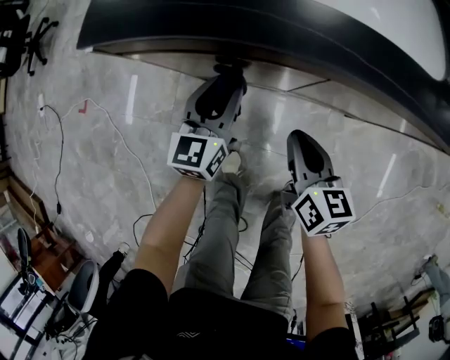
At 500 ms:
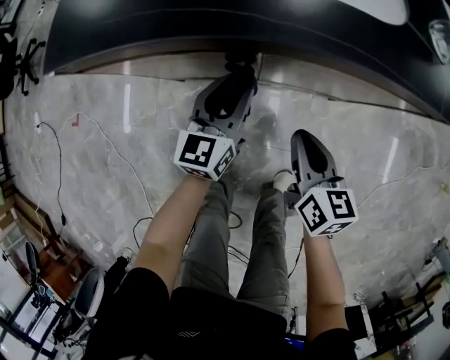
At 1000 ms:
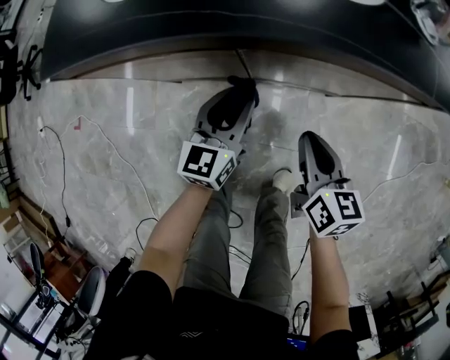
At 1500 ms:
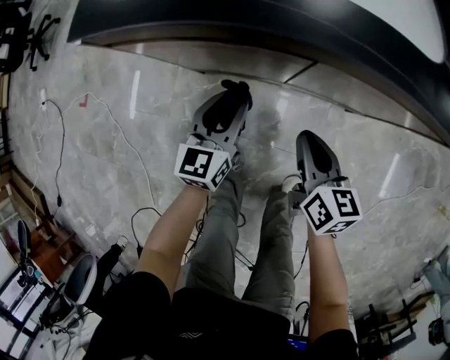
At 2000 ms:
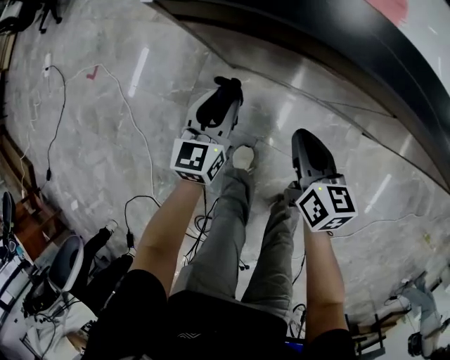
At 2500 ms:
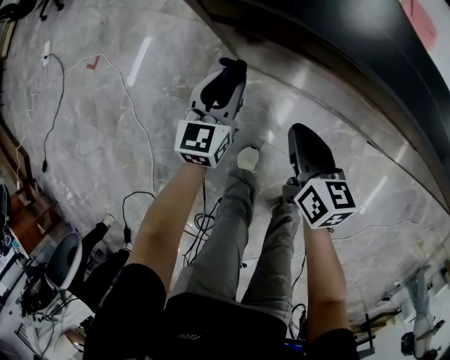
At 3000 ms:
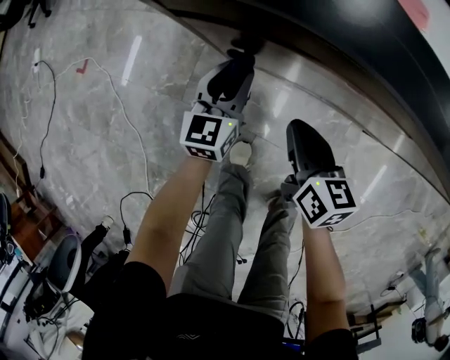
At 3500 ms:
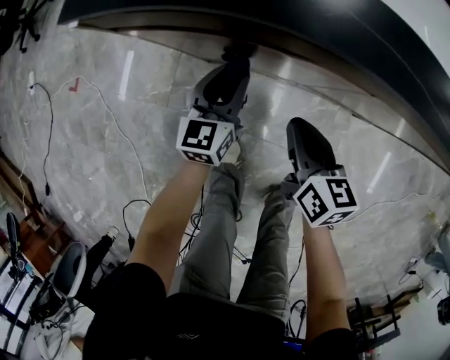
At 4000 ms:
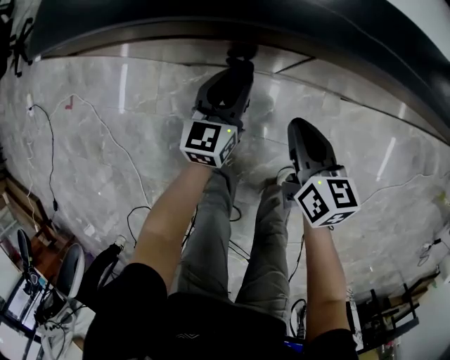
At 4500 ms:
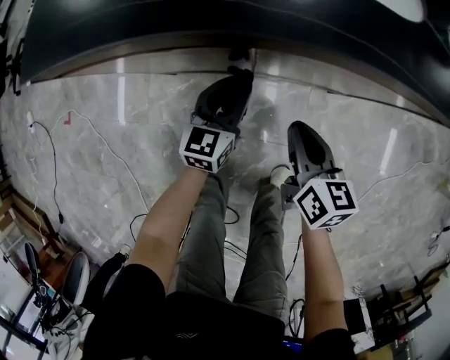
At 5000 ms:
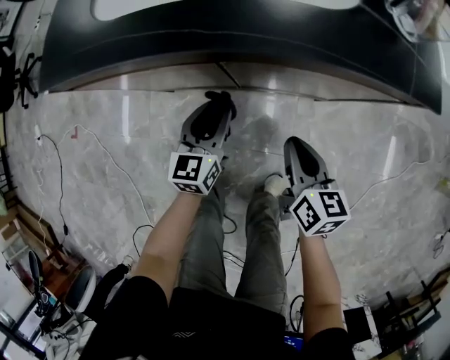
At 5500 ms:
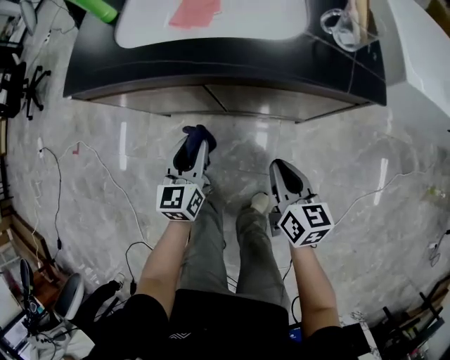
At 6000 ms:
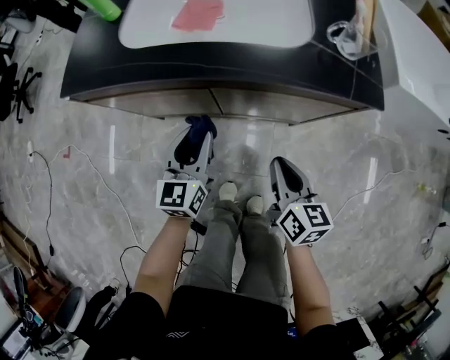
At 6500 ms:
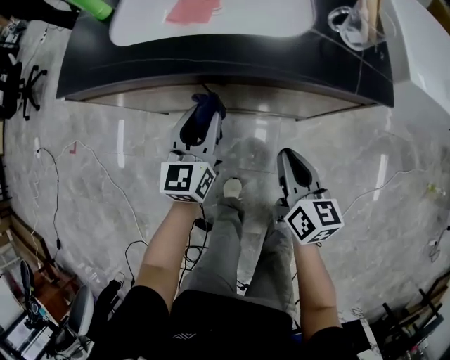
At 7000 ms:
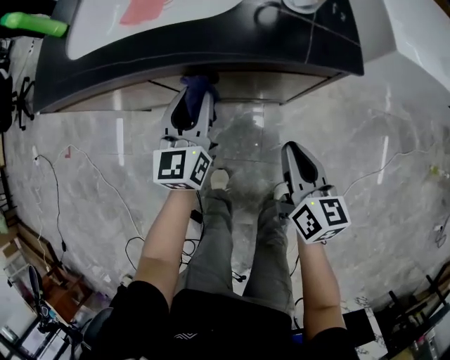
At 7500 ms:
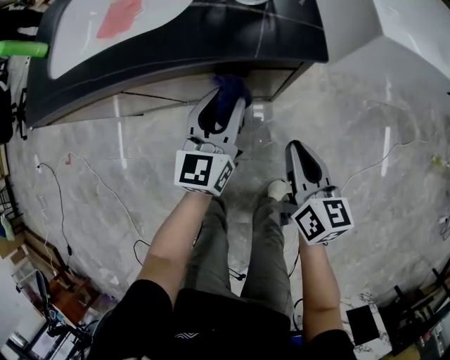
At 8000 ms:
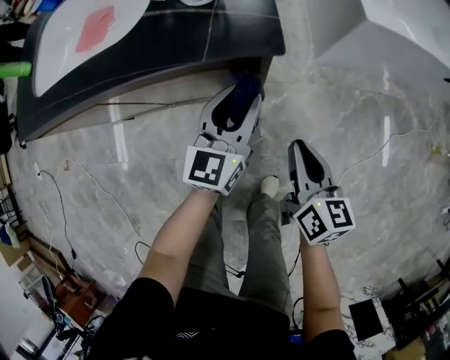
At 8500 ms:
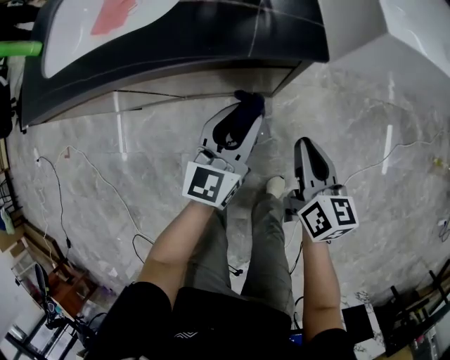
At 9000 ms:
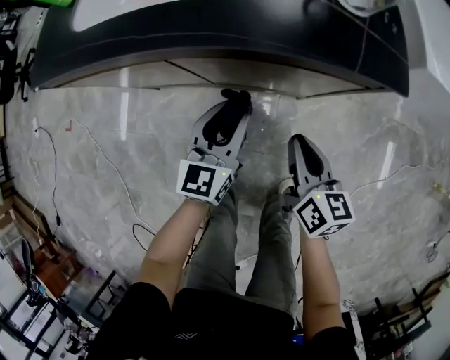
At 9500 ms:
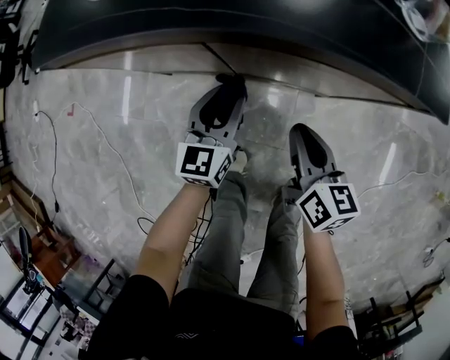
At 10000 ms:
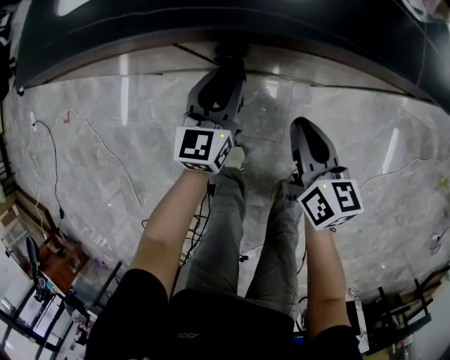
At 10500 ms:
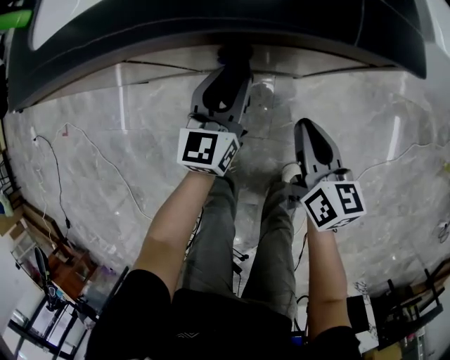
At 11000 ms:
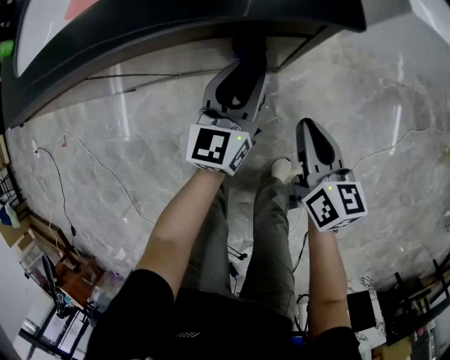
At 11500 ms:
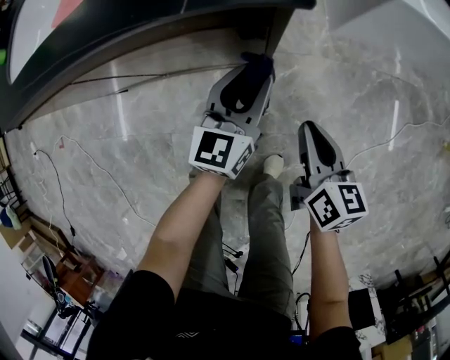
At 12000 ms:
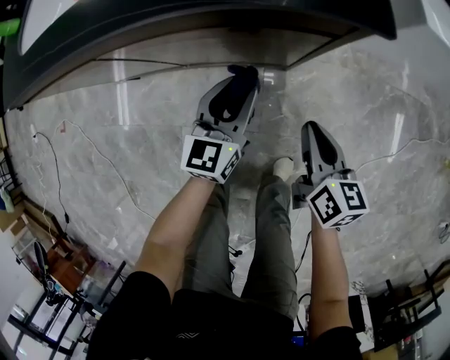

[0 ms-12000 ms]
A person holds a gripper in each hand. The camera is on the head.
0 ms to 2000 ms: The left gripper goes approximately 15 cm to the left and downward. Meanwhile the right gripper is displaced to the left by some 10 cm.
2000 ms to 4000 ms: Both grippers travel together to the right, roughly 15 cm.
4000 ms to 6000 ms: The left gripper travels upward, backward and to the right by some 20 cm; the right gripper is displaced to the right, upward and backward by roughly 20 cm.
6000 ms to 8000 ms: The grippers both shift to the right by roughly 30 cm.
8000 ms to 10000 ms: Both grippers travel together to the left, roughly 25 cm.
10000 ms to 12000 ms: The two grippers go roughly 15 cm to the right.

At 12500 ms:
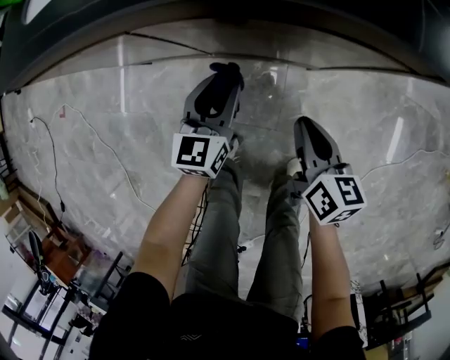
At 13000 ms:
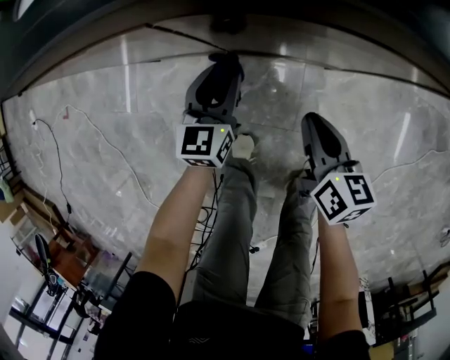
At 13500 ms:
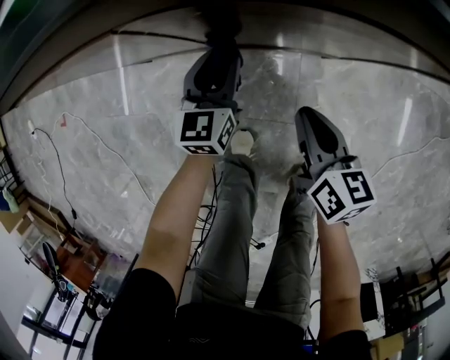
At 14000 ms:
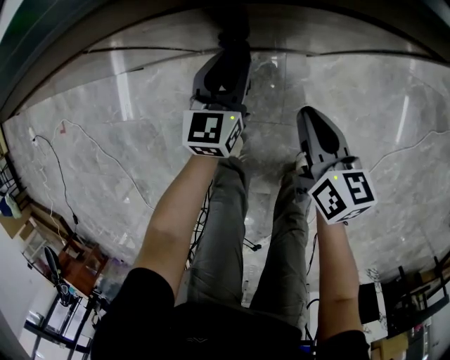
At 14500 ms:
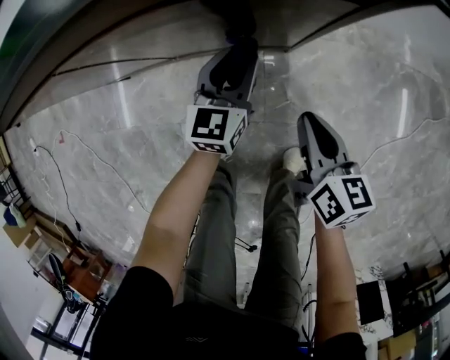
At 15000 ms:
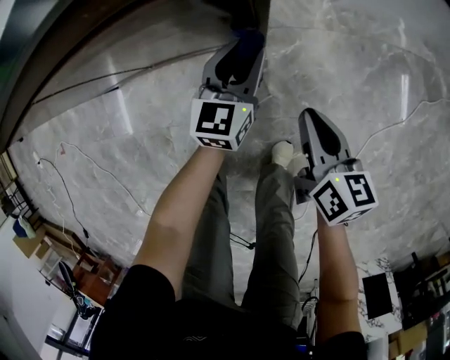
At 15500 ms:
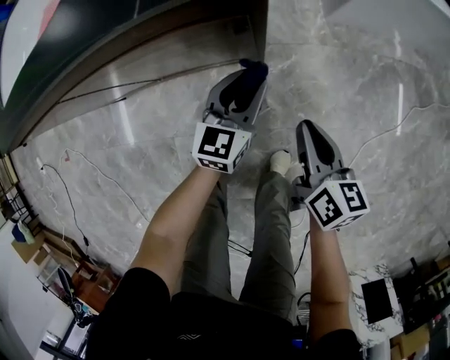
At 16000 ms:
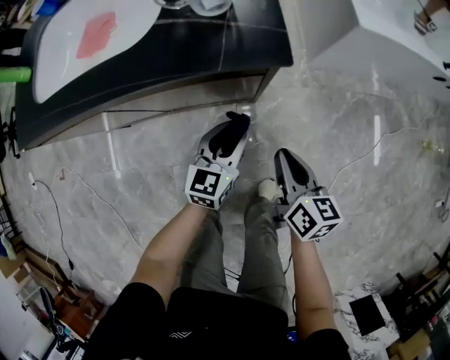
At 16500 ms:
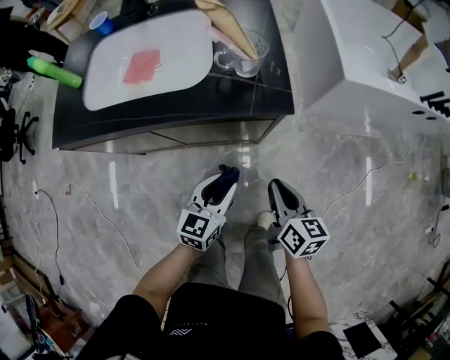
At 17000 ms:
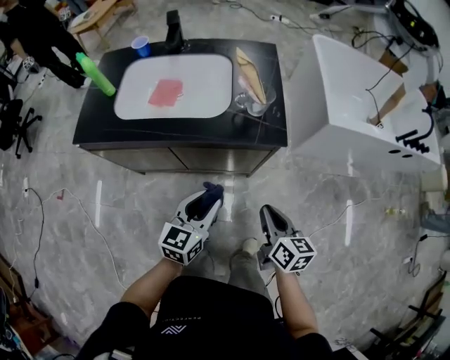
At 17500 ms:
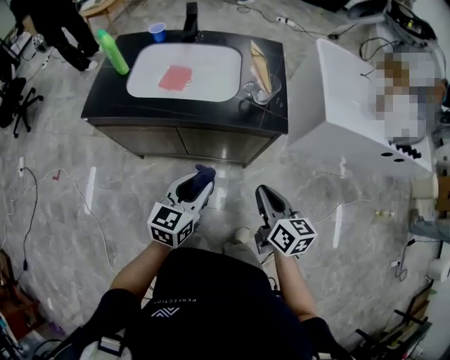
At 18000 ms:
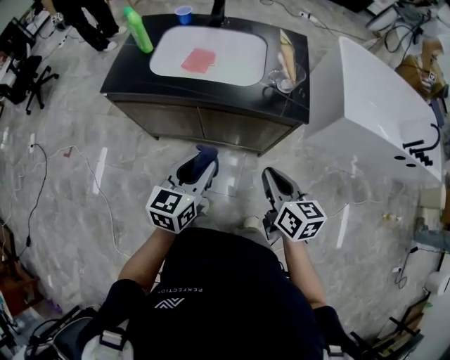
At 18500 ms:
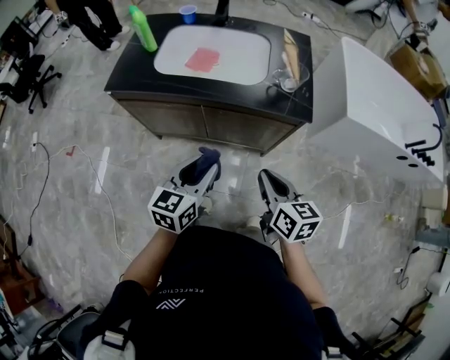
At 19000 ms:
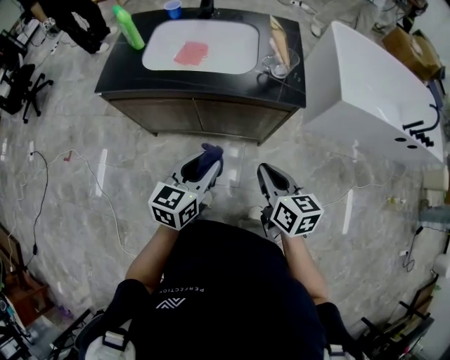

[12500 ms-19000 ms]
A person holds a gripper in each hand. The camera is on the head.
12500 ms to 14500 ms: The left gripper is displaced to the right by about 15 cm; the right gripper moves to the right, some 10 cm.
14500 ms to 17000 ms: The left gripper moves upward and backward, about 35 cm. Meanwhile the right gripper moves upward, roughly 30 cm.
17000 ms to 19000 ms: The left gripper goes approximately 10 cm to the left, backward and upward. Meanwhile the right gripper goes some 10 cm to the left and upward.

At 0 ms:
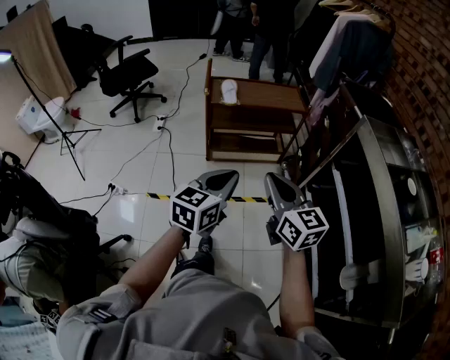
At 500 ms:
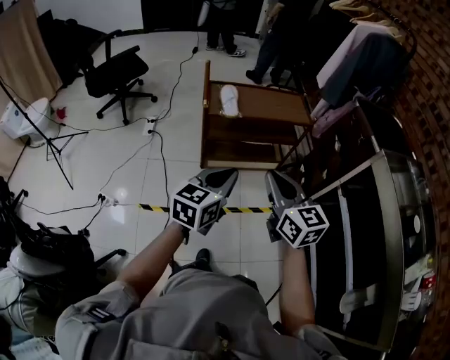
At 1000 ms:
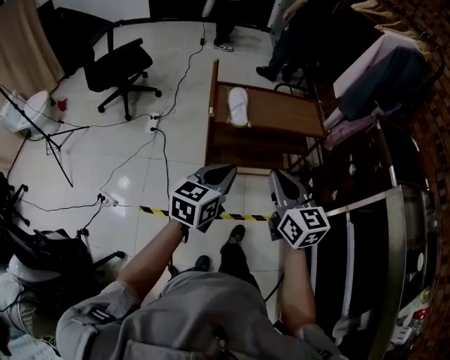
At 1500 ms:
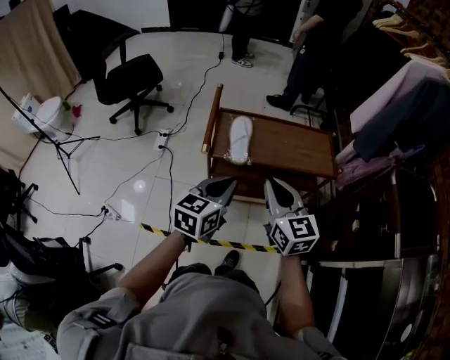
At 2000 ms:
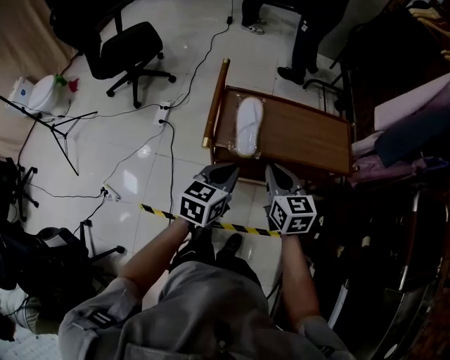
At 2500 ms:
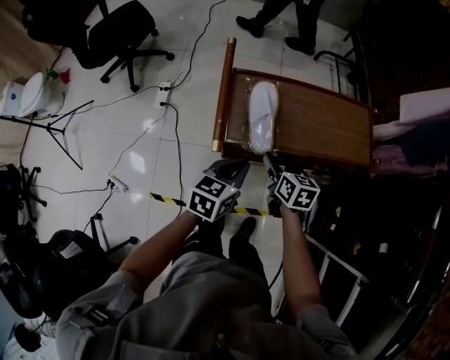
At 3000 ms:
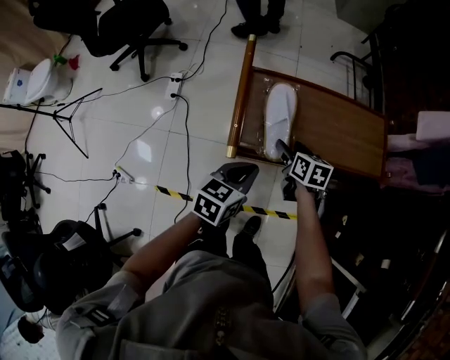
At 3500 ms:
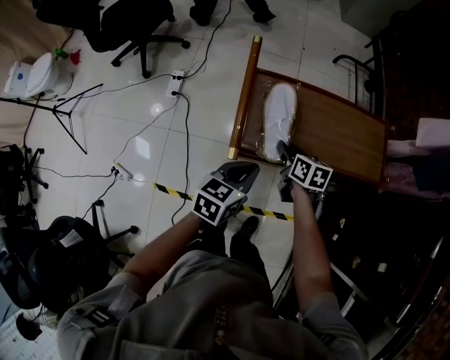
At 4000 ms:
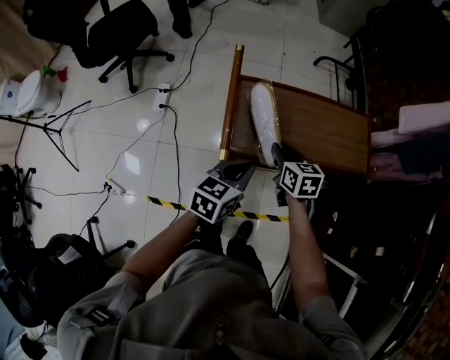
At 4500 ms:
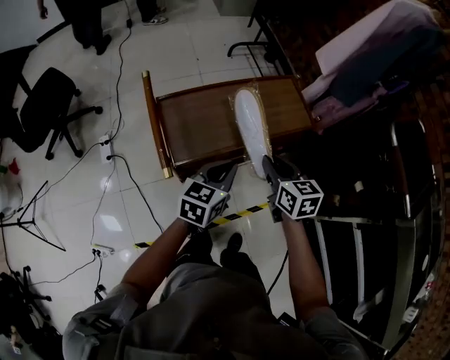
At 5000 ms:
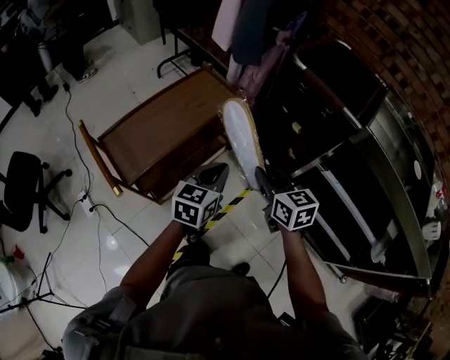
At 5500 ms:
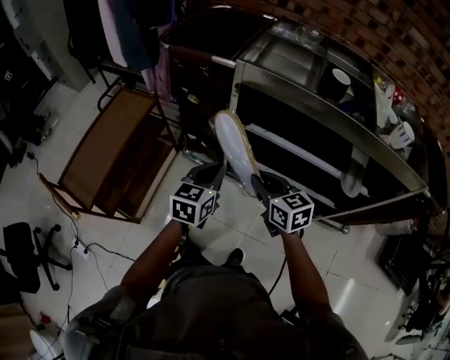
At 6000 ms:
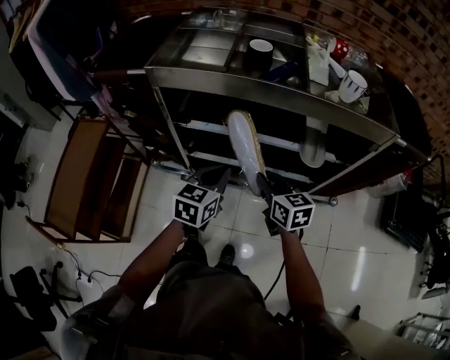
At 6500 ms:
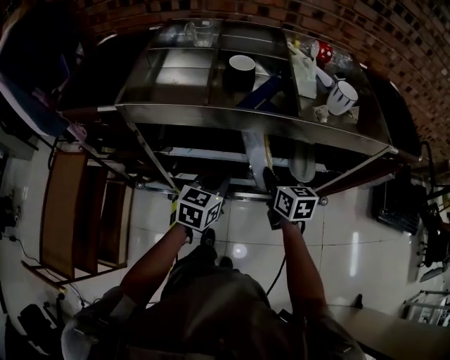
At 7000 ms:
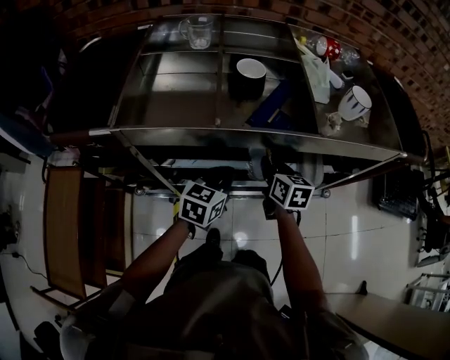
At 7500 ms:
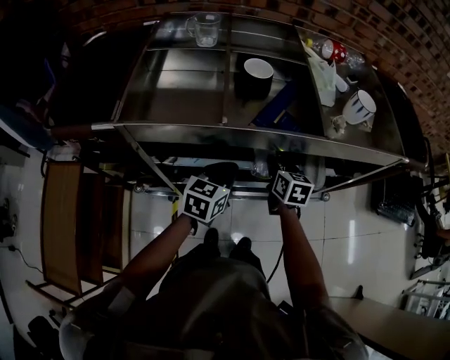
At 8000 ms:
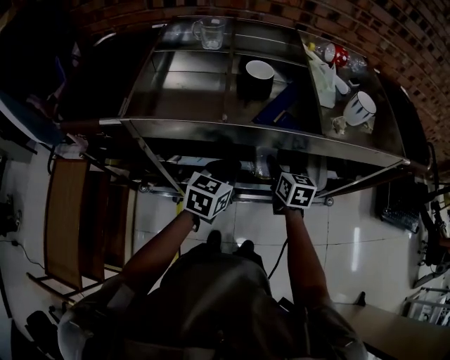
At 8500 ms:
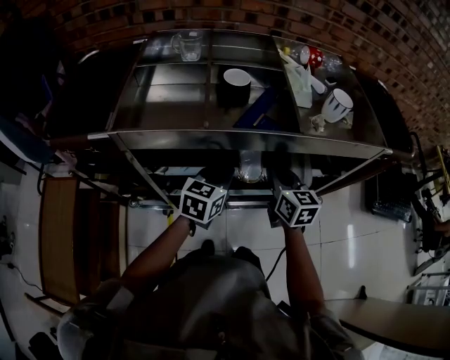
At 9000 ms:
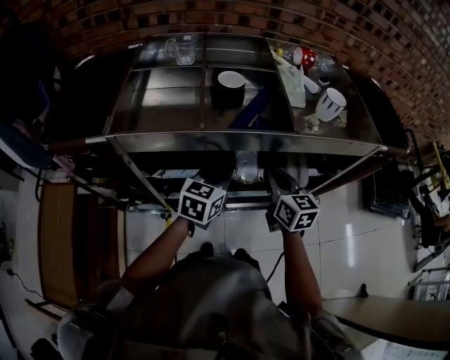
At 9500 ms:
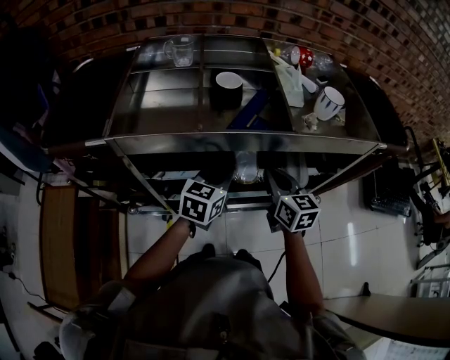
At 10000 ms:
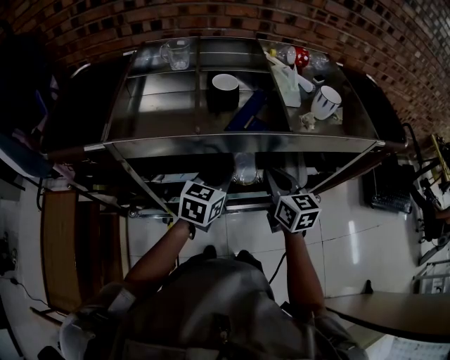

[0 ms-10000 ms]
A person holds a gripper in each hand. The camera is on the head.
0 ms to 2000 ms: Both grippers are carried forward, approximately 50 cm.
2000 ms to 4000 ms: The left gripper shifts about 10 cm forward and downward, while the right gripper shifts some 15 cm forward, downward and to the left, and opens, then closes once more.
4000 ms to 6000 ms: Both grippers are carried about 80 cm. The left gripper turns by approximately 80 degrees. The right gripper changes its angle by roughly 80 degrees.
6000 ms to 8000 ms: The grippers both shift forward by some 20 cm. The right gripper swivels roughly 30 degrees, and opens.
8000 ms to 10000 ms: The right gripper is displaced upward and backward by some 10 cm, and closes its fingers.
